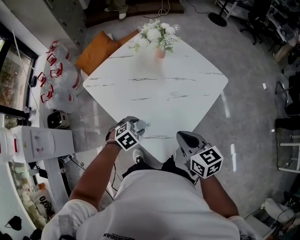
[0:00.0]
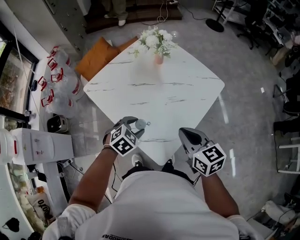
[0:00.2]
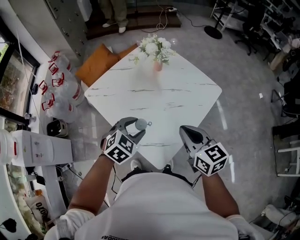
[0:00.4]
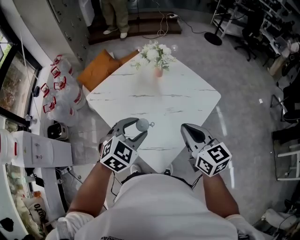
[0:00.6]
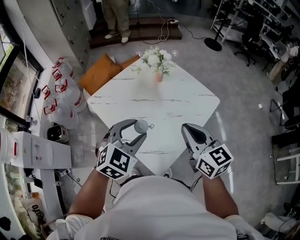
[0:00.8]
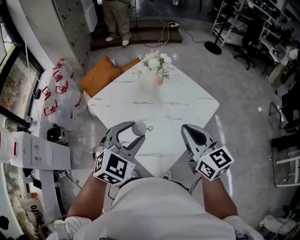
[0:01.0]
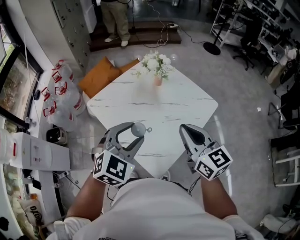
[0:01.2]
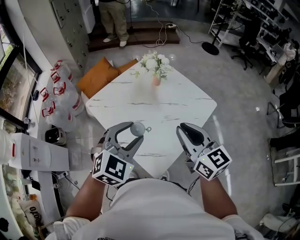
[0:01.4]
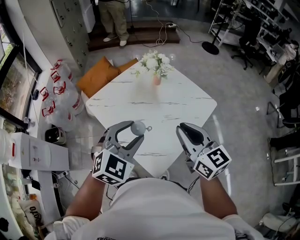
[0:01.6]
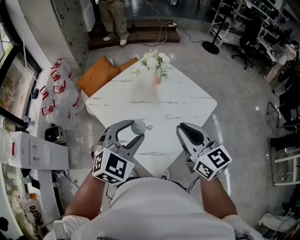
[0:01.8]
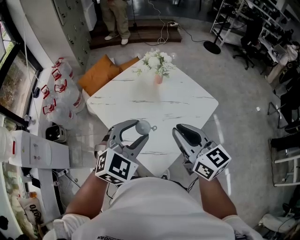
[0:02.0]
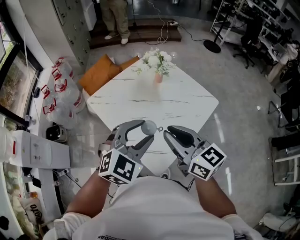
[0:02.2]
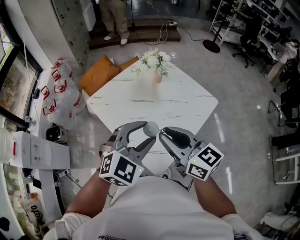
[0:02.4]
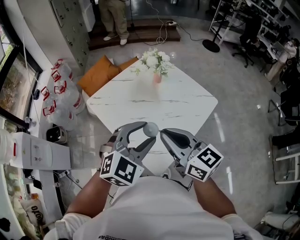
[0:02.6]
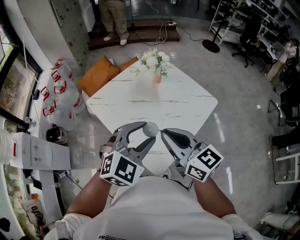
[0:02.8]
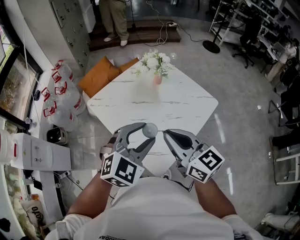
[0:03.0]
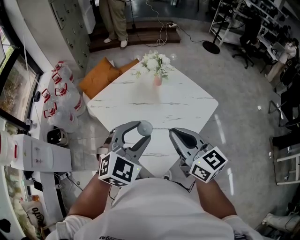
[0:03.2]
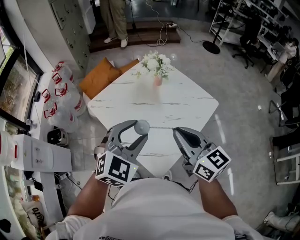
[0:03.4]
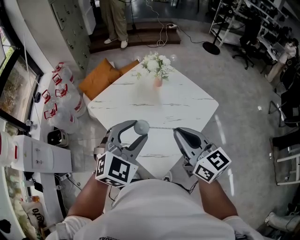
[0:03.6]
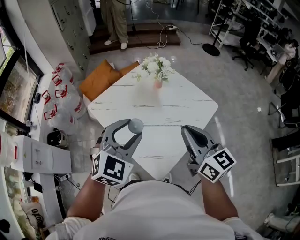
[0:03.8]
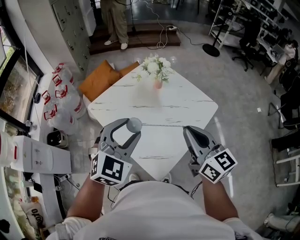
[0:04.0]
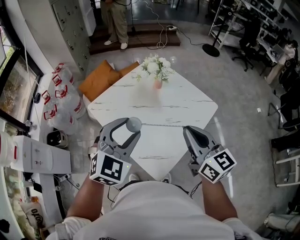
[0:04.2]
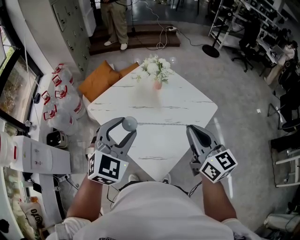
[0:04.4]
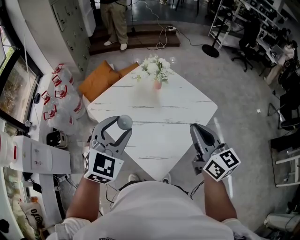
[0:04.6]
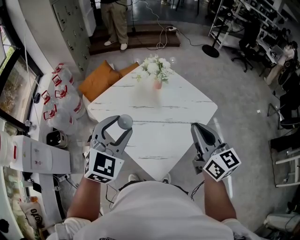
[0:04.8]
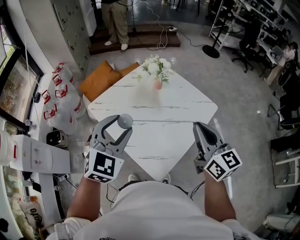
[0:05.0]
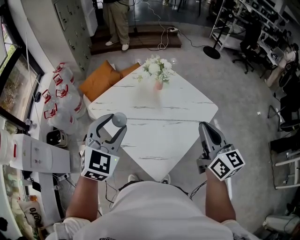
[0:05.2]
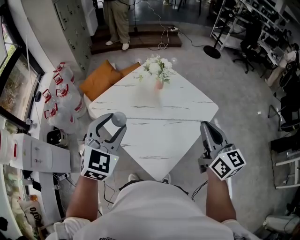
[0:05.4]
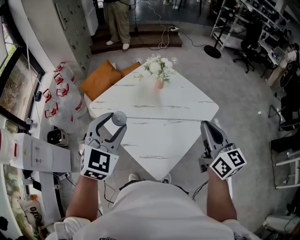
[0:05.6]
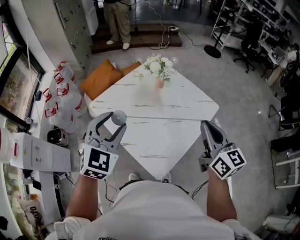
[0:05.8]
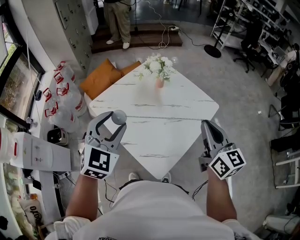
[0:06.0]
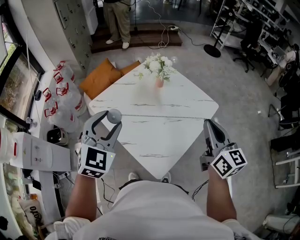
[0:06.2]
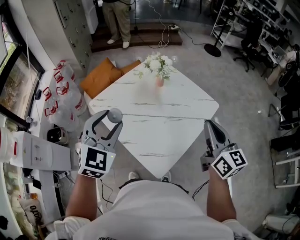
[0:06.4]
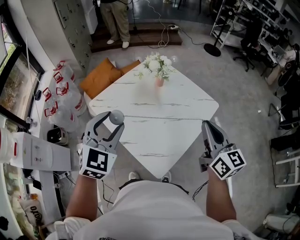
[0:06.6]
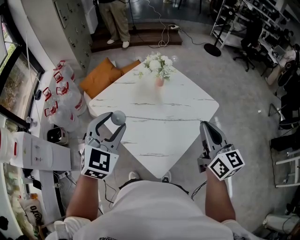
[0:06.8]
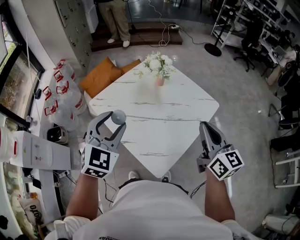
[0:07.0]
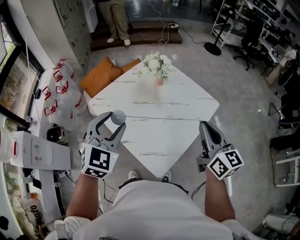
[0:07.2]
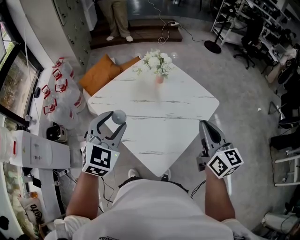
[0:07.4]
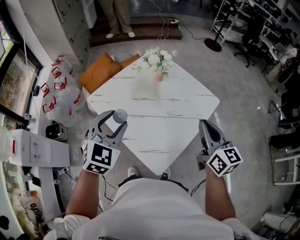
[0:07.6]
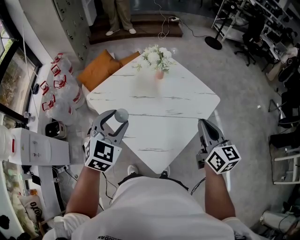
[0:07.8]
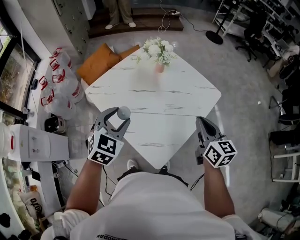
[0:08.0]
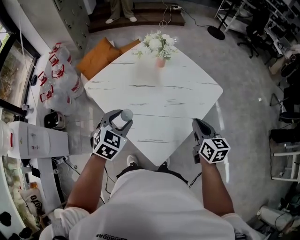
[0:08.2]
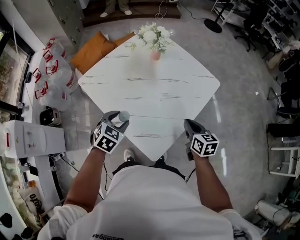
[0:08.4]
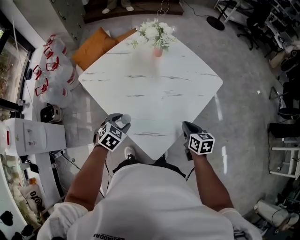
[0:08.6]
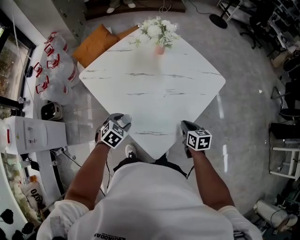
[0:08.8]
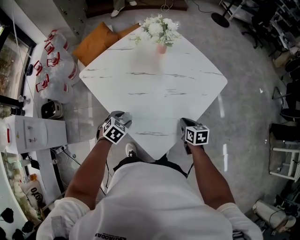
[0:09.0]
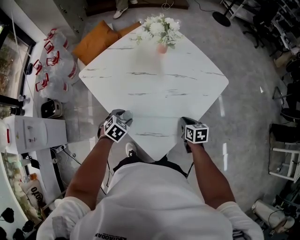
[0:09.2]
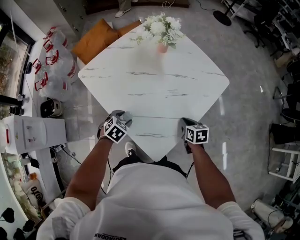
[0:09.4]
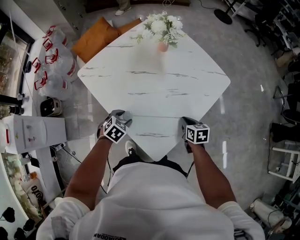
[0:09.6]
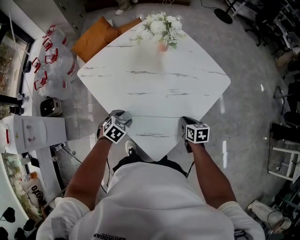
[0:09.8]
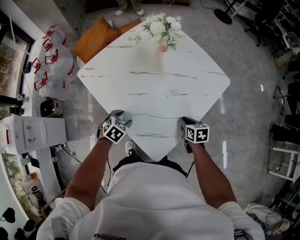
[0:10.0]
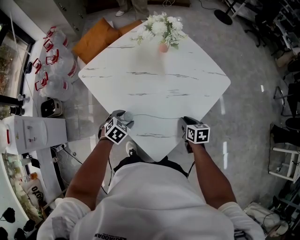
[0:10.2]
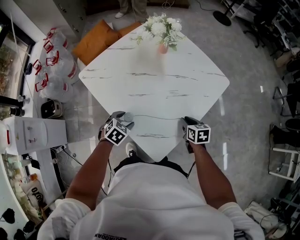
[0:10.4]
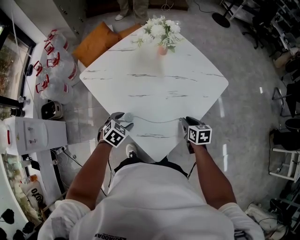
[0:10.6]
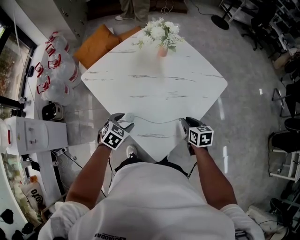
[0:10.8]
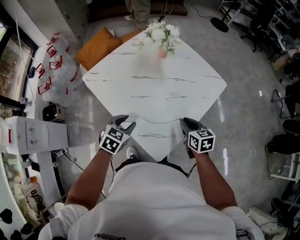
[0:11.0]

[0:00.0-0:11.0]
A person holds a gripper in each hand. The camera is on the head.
0:00.0 to 0:01.6: The right gripper heads upward, covering approximately 15 cm, and changes its angle by roughly 20 degrees. The left gripper shifts some 30 cm upward, and tips its fingers upward by about 40 degrees.
0:03.2 to 0:04.8: The right gripper shifts about 10 cm to the right. Meanwhile the left gripper moves to the left, approximately 5 cm.
0:04.8 to 0:06.2: There are only small adjustments of the grippers.
0:06.2 to 0:07.8: The two grippers go roughly 5 cm downward.
0:07.8 to 0:09.4: The grippers both shift downward by approximately 35 cm. The right gripper tilts its fingers about 40 degrees downward, while the left gripper points its fingers roughly 30 degrees further downward.
0:09.4 to 0:11.0: The two grippers go some 10 cm upward.

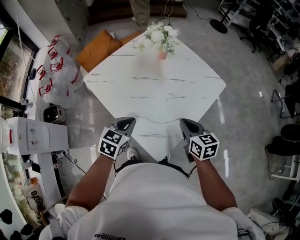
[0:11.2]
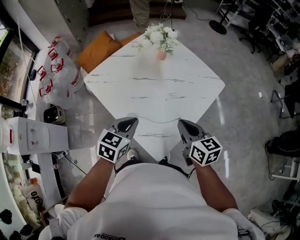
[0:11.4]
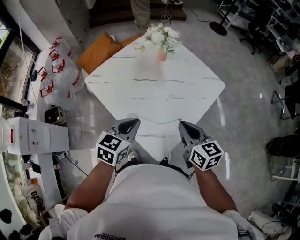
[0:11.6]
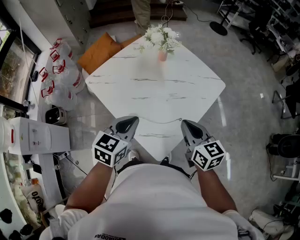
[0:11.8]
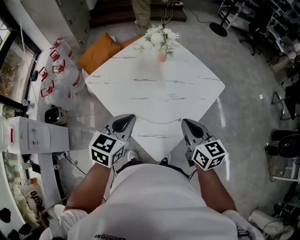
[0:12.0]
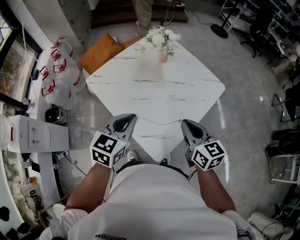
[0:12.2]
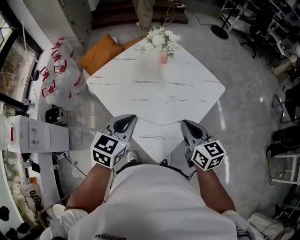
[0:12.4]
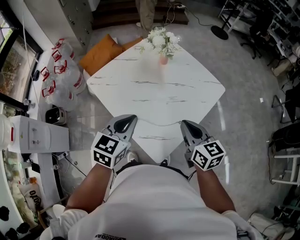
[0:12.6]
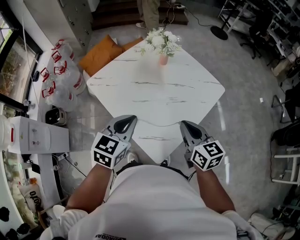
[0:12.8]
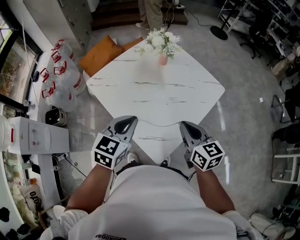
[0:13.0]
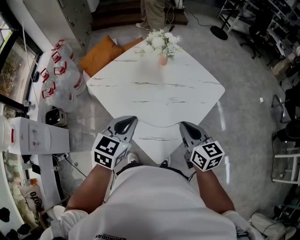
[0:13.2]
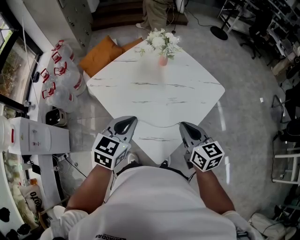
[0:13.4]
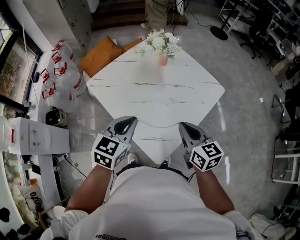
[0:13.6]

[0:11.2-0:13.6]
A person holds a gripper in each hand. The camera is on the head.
0:11.2 to 0:12.4: The two grippers go about 10 cm upward.
0:12.4 to 0:13.6: Both grippers stay put.

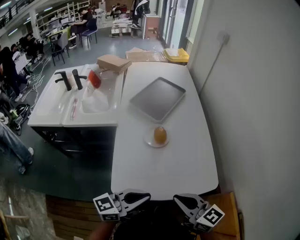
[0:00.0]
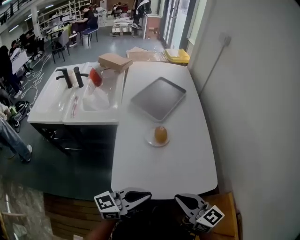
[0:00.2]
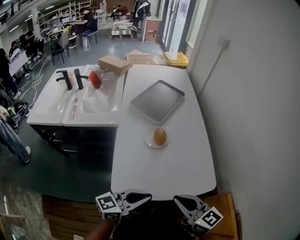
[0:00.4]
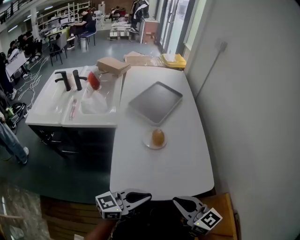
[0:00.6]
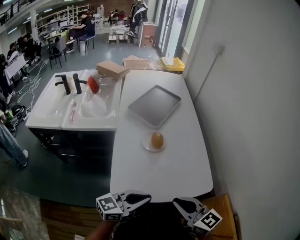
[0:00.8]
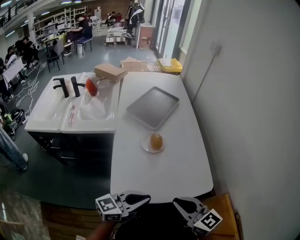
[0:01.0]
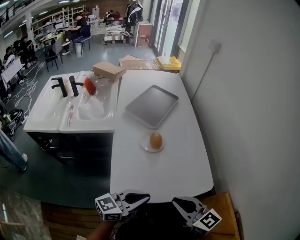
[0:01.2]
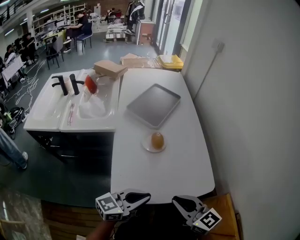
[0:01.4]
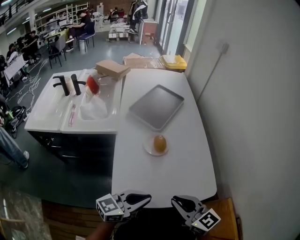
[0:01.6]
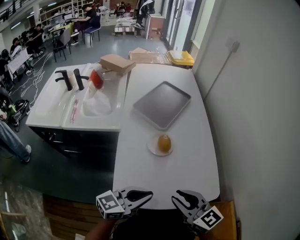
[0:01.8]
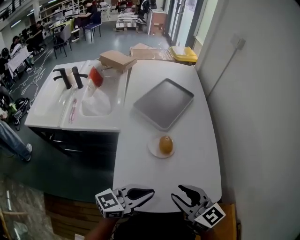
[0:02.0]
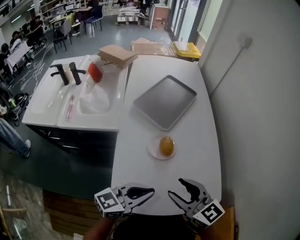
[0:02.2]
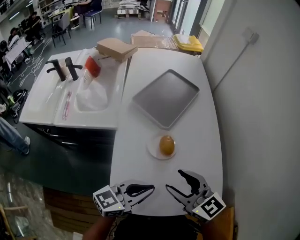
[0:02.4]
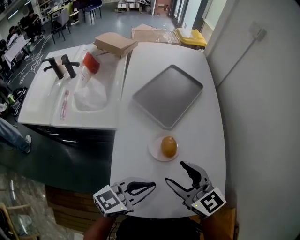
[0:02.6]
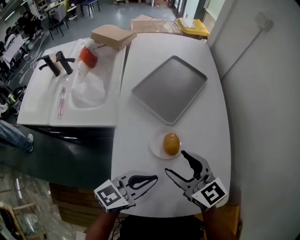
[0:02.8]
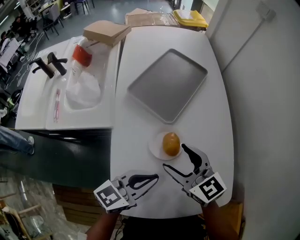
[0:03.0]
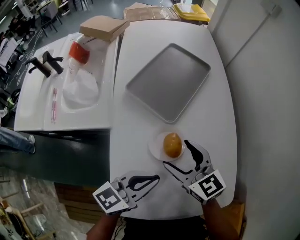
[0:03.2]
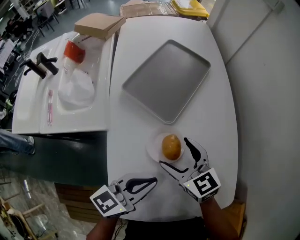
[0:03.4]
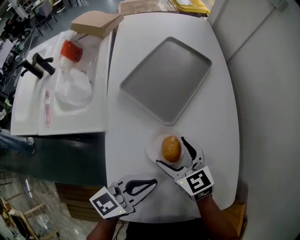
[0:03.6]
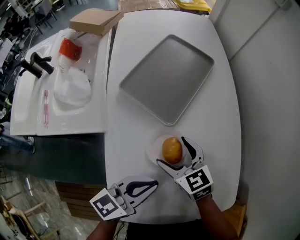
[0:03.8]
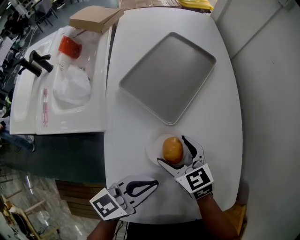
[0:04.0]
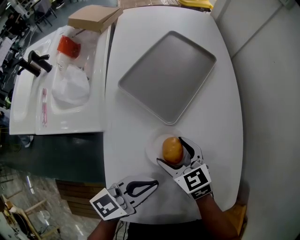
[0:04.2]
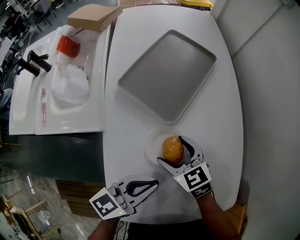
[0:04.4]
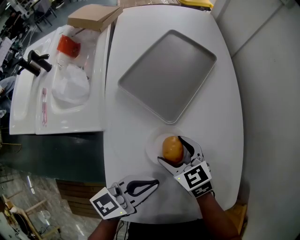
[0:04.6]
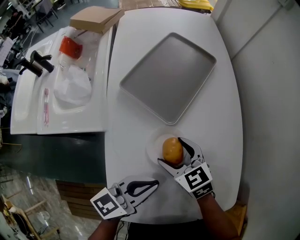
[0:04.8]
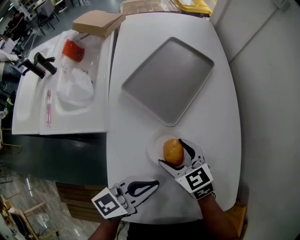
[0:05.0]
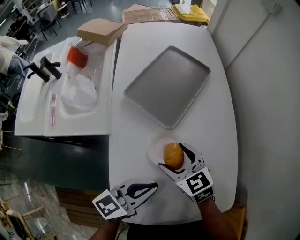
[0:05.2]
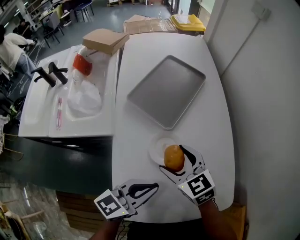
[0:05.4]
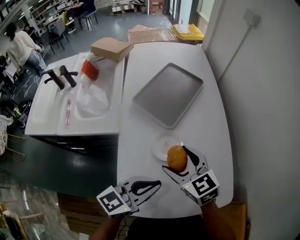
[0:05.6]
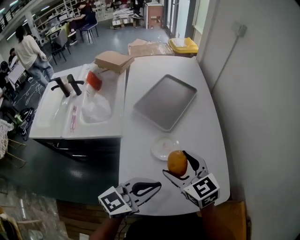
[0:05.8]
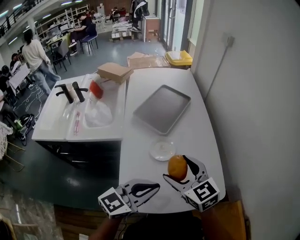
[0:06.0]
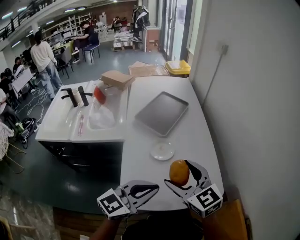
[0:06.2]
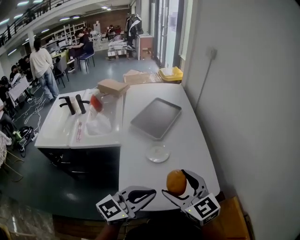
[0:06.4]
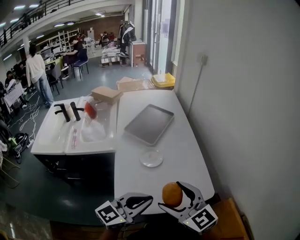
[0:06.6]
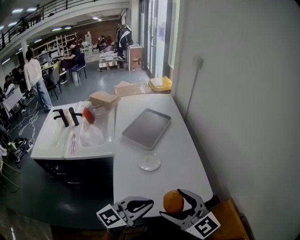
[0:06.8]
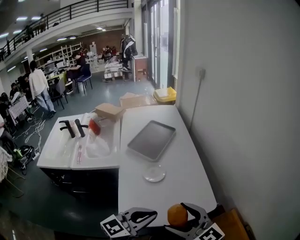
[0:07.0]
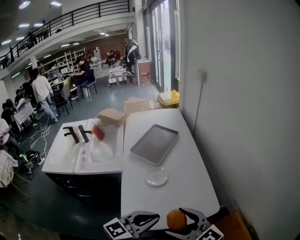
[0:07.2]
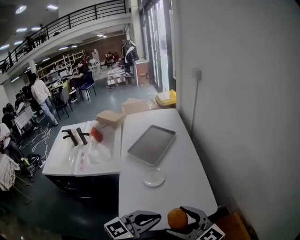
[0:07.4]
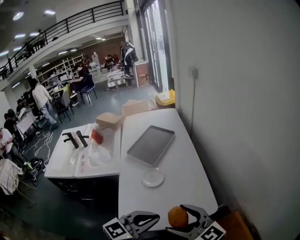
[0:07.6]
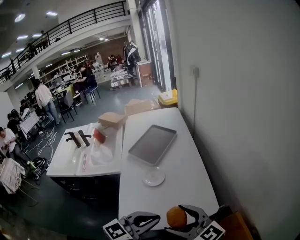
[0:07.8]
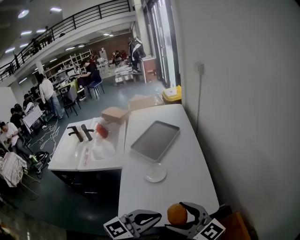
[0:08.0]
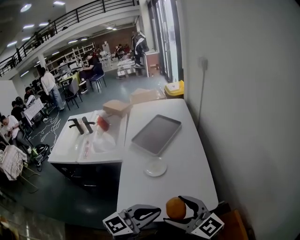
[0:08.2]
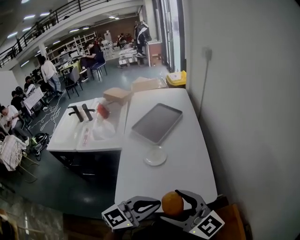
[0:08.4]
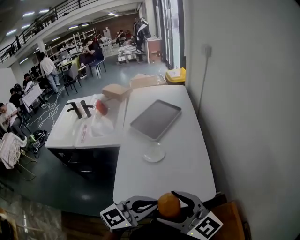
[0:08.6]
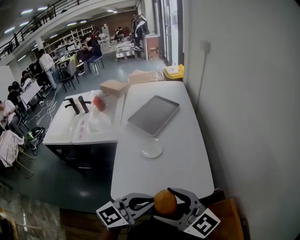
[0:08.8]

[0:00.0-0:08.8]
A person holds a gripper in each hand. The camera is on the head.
0:00.0 to 0:01.4: The grippers stay close to where they were, moving slightly.
0:01.4 to 0:03.0: Both grippers move forward, some 25 cm. The right gripper opens its fingers.
0:03.0 to 0:04.4: The right gripper shifts roughly 15 cm downward and forward, and rotates about 20 degrees. Meanwhile the left gripper changes place by about 5 cm.
0:04.4 to 0:05.8: The two grippers go roughly 20 cm upward and backward.
0:05.8 to 0:07.4: The left gripper travels backward, to the right and upward by some 20 cm, while the right gripper heads backward, upward and to the right, covering about 30 cm, and swivels some 20 degrees.
0:07.4 to 0:08.8: The left gripper shifts by about 5 cm.

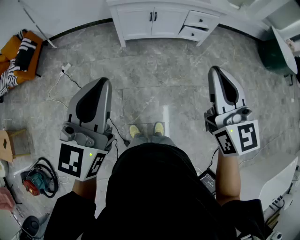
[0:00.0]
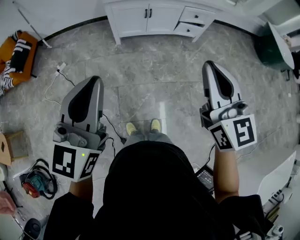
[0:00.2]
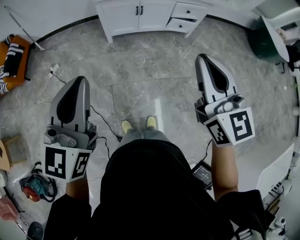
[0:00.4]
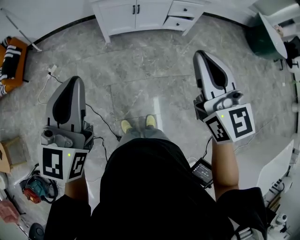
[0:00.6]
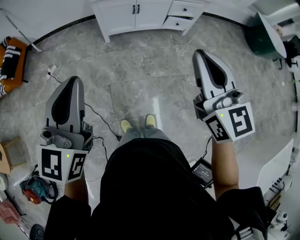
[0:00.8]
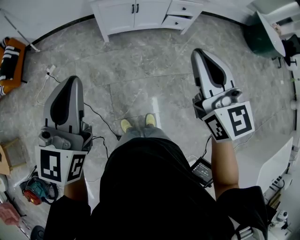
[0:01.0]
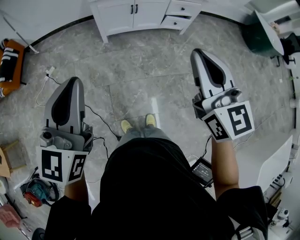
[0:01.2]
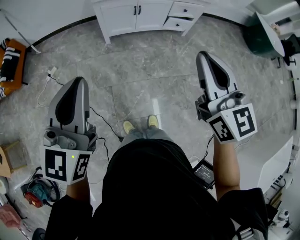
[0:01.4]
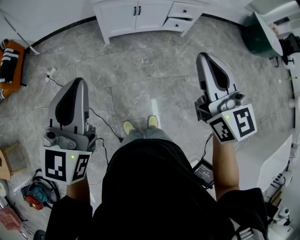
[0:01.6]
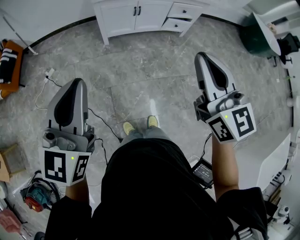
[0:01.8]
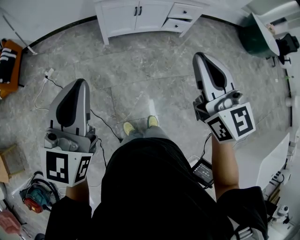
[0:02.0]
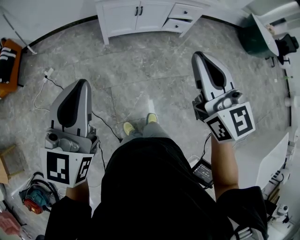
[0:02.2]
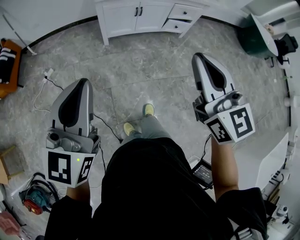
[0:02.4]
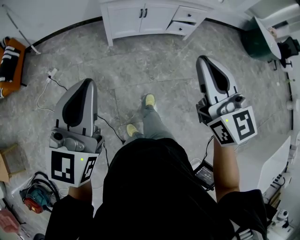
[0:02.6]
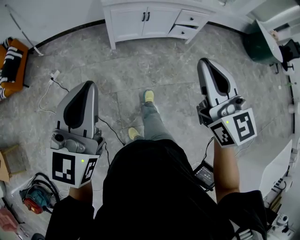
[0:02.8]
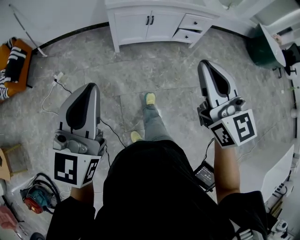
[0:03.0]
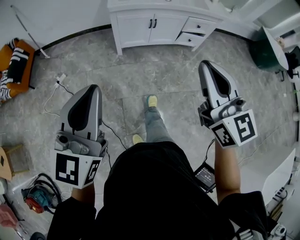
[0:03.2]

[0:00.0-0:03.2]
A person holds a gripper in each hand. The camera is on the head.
0:00.0 to 0:01.6: The left gripper shifts approximately 5 cm to the left.
0:01.6 to 0:03.2: The left gripper changes place by roughly 5 cm. Meanwhile the right gripper is displaced to the left and forward by some 10 cm.
